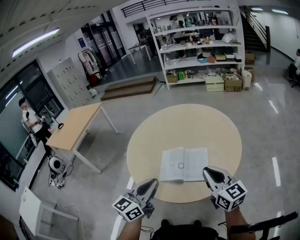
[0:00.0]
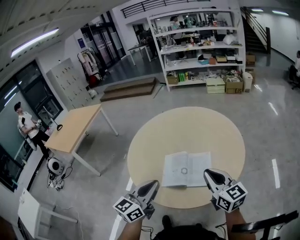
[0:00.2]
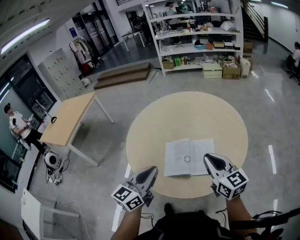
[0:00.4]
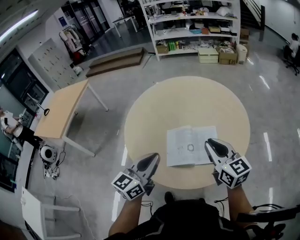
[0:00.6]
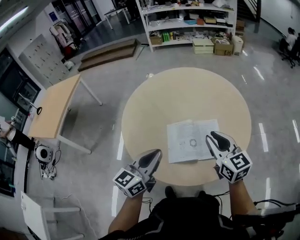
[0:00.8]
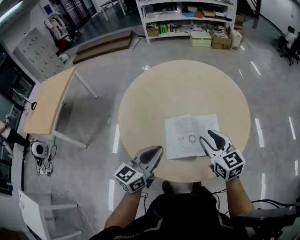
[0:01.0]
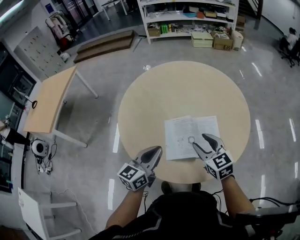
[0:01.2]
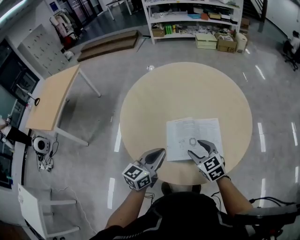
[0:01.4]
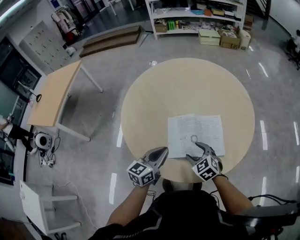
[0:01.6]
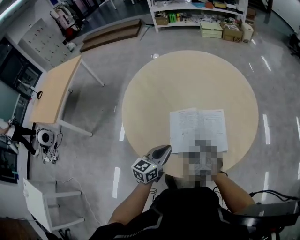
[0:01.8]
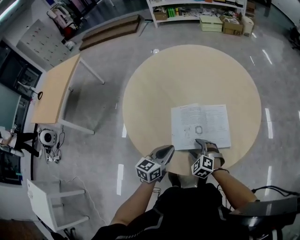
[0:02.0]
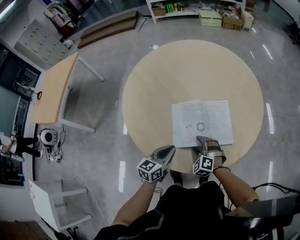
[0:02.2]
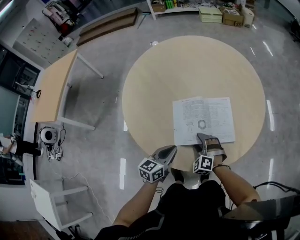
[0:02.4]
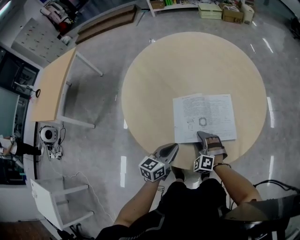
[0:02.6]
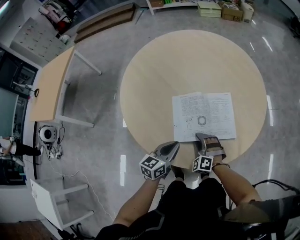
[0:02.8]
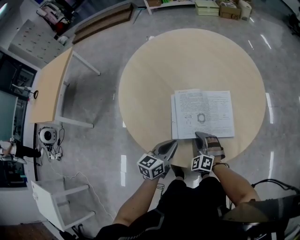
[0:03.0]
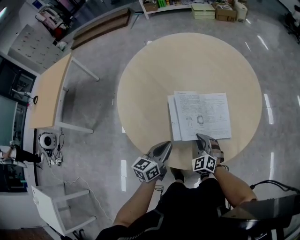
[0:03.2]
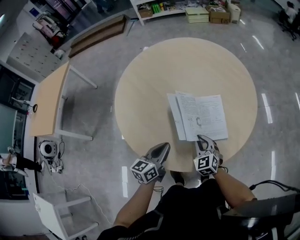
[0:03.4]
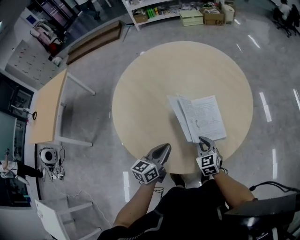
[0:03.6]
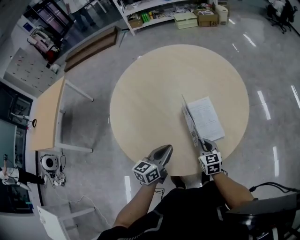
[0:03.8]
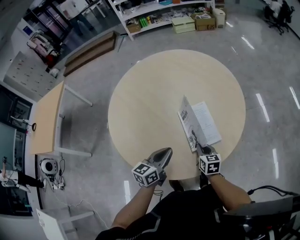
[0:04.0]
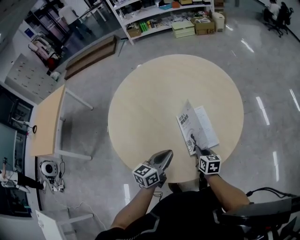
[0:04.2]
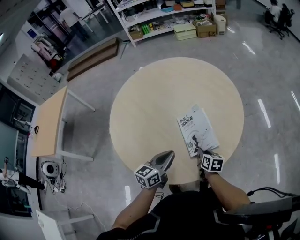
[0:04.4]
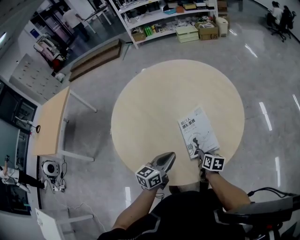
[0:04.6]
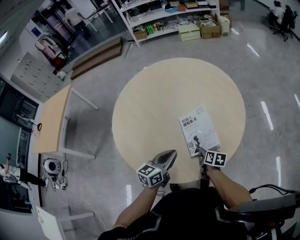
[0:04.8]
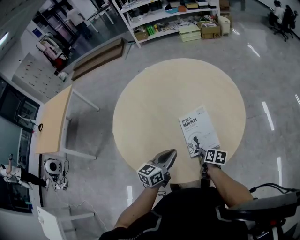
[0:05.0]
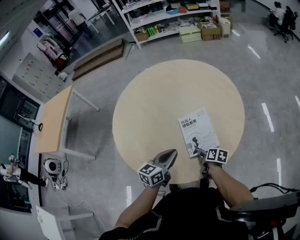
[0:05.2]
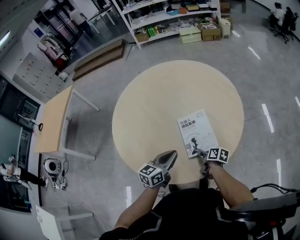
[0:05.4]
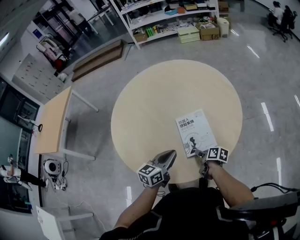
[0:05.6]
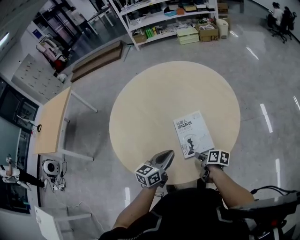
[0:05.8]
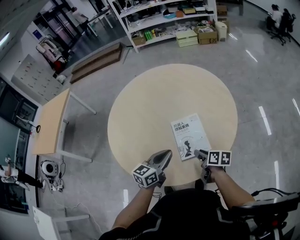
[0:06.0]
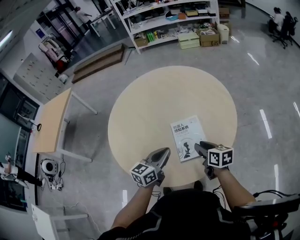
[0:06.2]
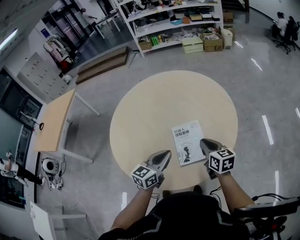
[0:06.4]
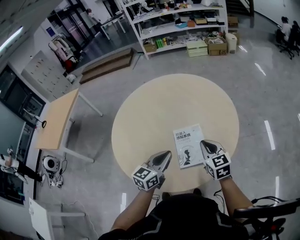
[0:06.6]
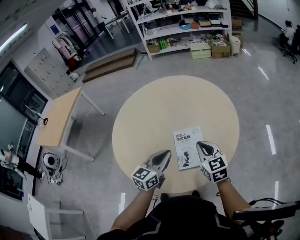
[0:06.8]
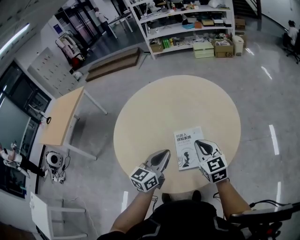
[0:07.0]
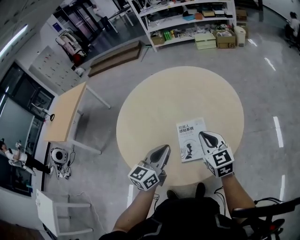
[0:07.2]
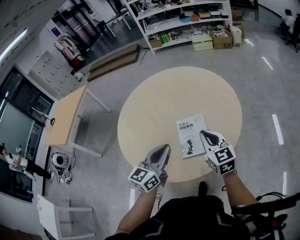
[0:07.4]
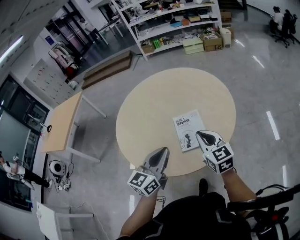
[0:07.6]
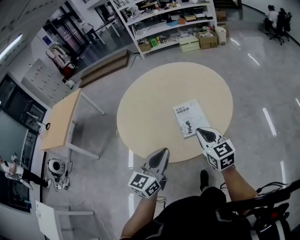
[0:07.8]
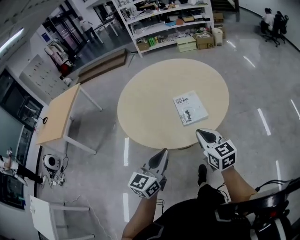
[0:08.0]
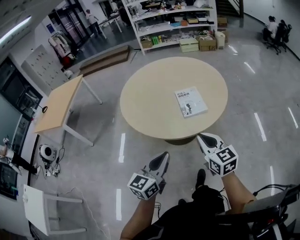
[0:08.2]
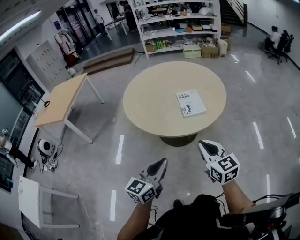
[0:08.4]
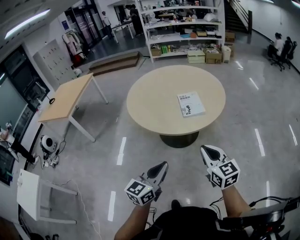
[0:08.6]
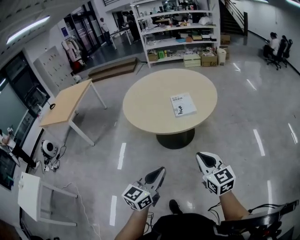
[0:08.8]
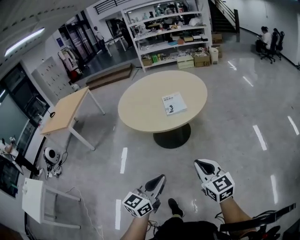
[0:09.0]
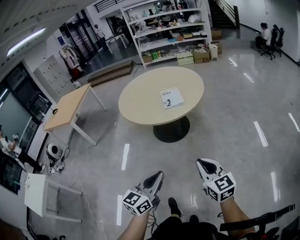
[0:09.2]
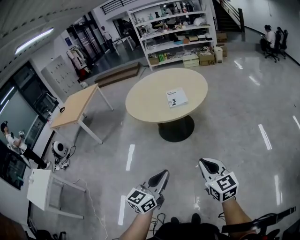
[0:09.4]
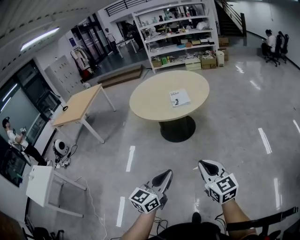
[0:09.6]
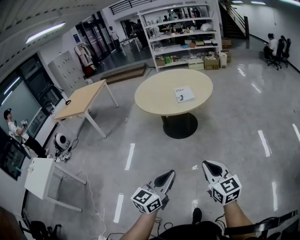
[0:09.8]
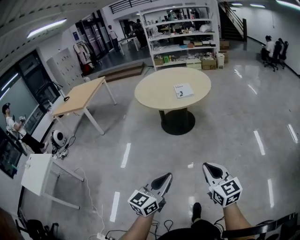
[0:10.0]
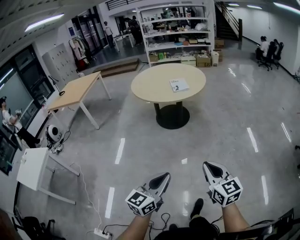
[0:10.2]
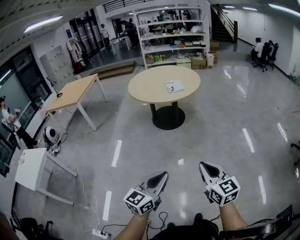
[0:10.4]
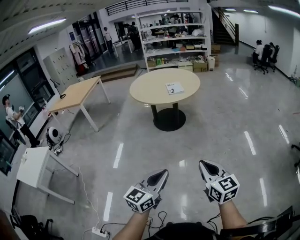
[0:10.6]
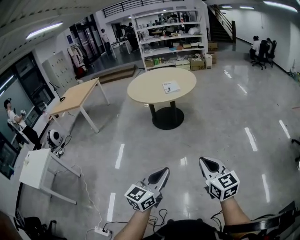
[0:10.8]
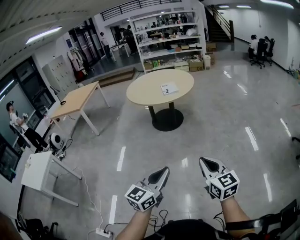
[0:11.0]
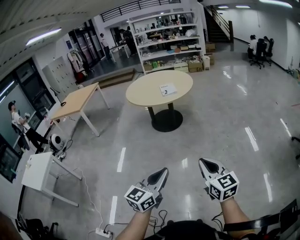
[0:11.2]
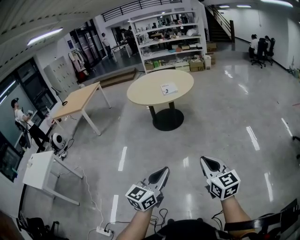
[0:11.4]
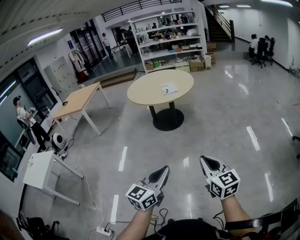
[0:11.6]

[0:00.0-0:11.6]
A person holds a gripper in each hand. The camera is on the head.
0:00.0 to 0:01.4: The right gripper goes about 30 cm downward, to the left and forward, tilts its fingers roughly 30 degrees downward, and opens up; the left gripper shifts roughly 20 cm downward, forward and to the left.
0:01.4 to 0:02.8: The grippers both shift downward by some 15 cm. The right gripper twists some 50 degrees counterclockwise, seen from behind.
0:02.8 to 0:04.4: The right gripper goes about 15 cm to the right, rolls clockwise, seen from behind, by some 100 degrees, and closes; the left gripper is displaced to the right and upward by some 10 cm.
0:04.4 to 0:05.8: The right gripper swivels some 30 degrees, and opens its fingers.
0:05.8 to 0:07.2: The right gripper shifts roughly 25 cm upward, rolls counterclockwise, seen from behind, by some 70 degrees, and closes up, while the left gripper shifts some 10 cm upward.
0:07.2 to 0:08.8: Both grippers are carried backward, about 60 cm.
0:08.8 to 0:10.2: The pair of grippers is taken backward, roughly 50 cm.
0:10.2 to 0:11.6: The left gripper heads to the right, backward and upward, covering approximately 15 cm. The right gripper moves backward and to the right, about 15 cm.

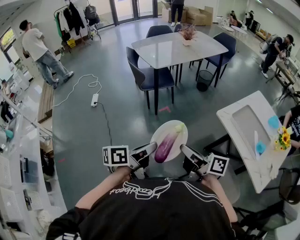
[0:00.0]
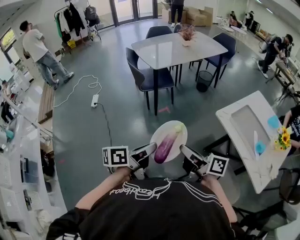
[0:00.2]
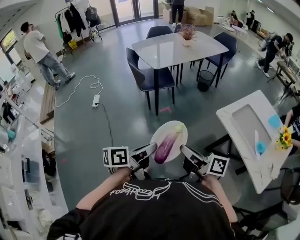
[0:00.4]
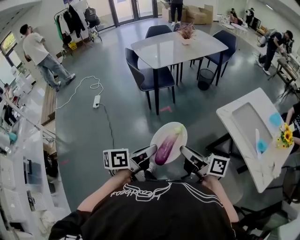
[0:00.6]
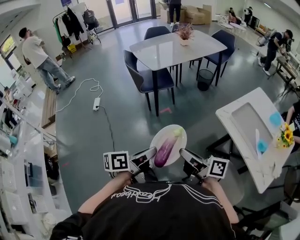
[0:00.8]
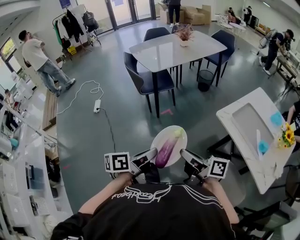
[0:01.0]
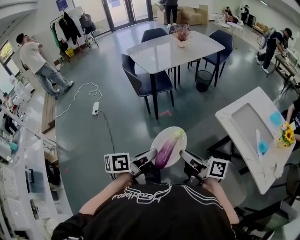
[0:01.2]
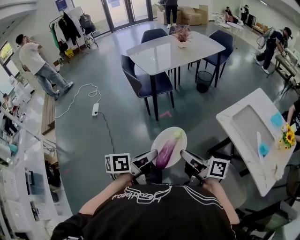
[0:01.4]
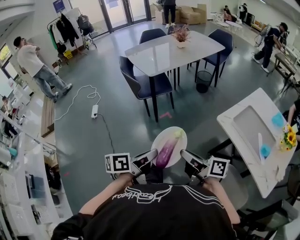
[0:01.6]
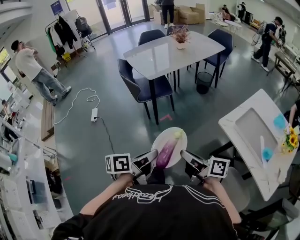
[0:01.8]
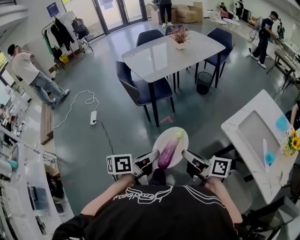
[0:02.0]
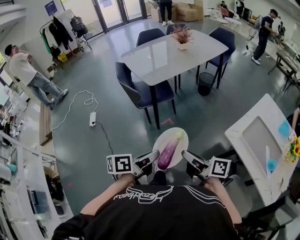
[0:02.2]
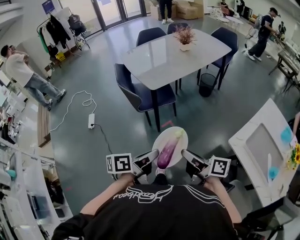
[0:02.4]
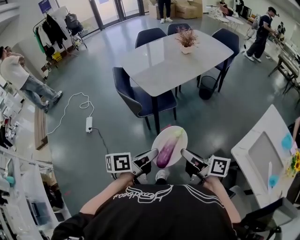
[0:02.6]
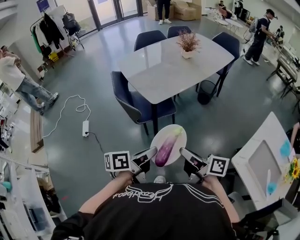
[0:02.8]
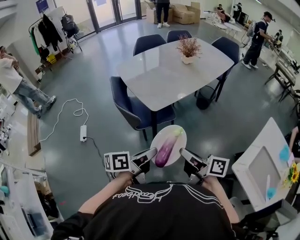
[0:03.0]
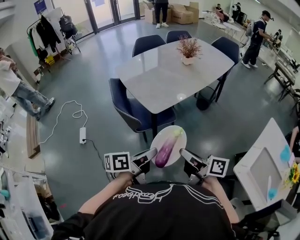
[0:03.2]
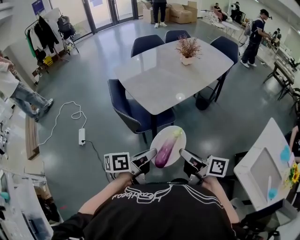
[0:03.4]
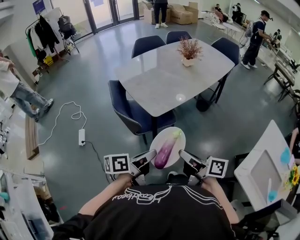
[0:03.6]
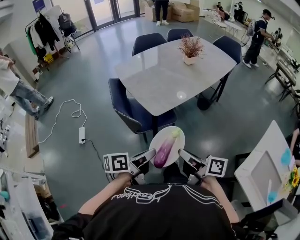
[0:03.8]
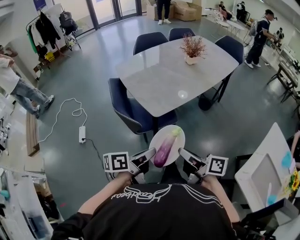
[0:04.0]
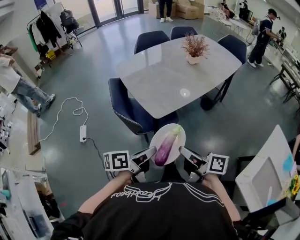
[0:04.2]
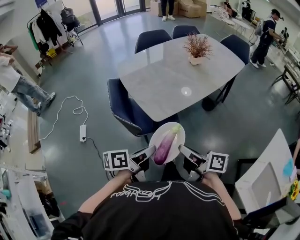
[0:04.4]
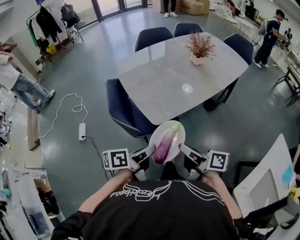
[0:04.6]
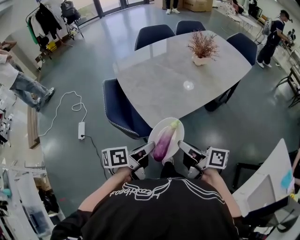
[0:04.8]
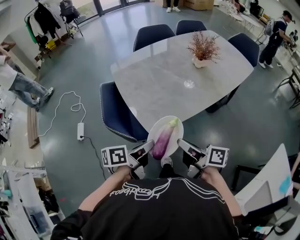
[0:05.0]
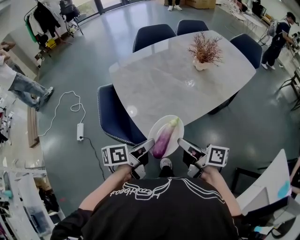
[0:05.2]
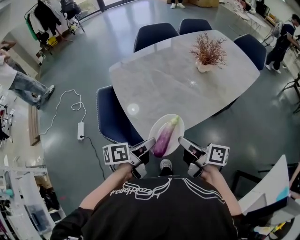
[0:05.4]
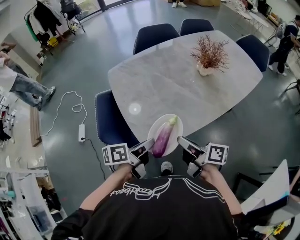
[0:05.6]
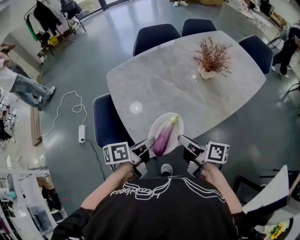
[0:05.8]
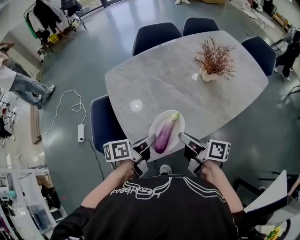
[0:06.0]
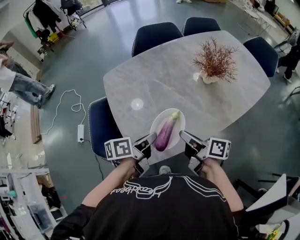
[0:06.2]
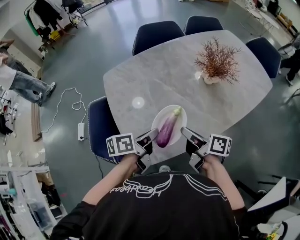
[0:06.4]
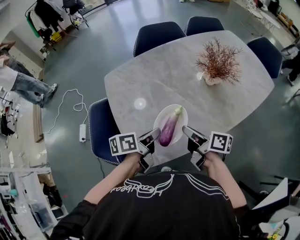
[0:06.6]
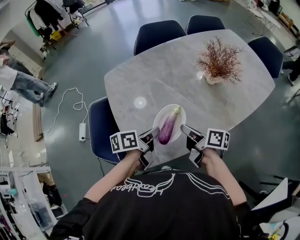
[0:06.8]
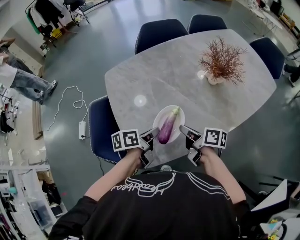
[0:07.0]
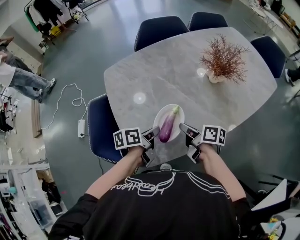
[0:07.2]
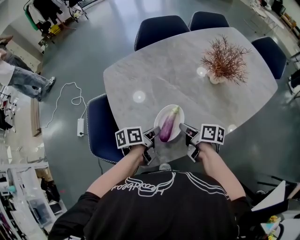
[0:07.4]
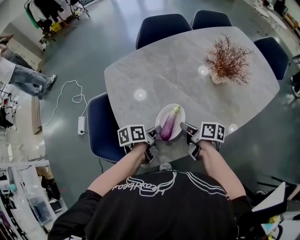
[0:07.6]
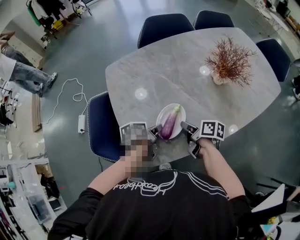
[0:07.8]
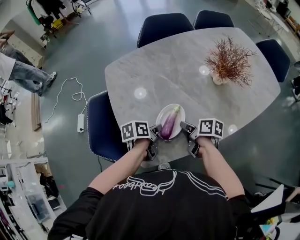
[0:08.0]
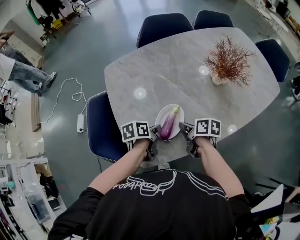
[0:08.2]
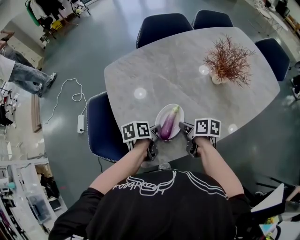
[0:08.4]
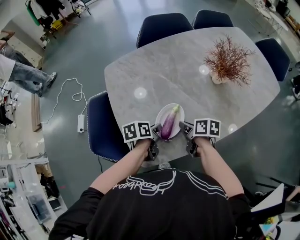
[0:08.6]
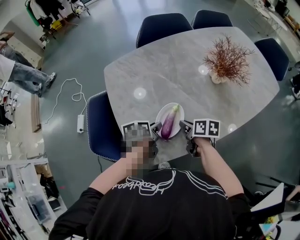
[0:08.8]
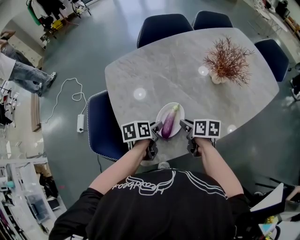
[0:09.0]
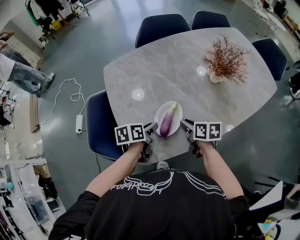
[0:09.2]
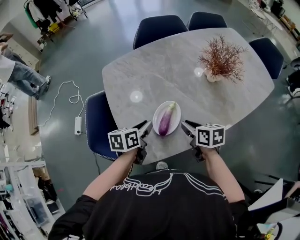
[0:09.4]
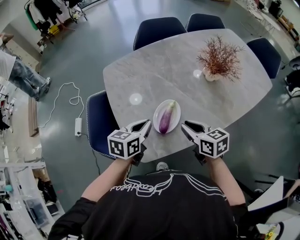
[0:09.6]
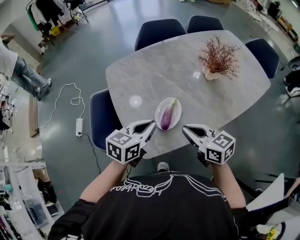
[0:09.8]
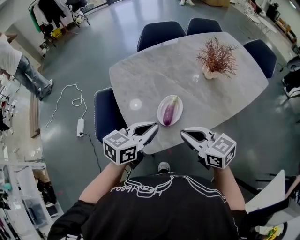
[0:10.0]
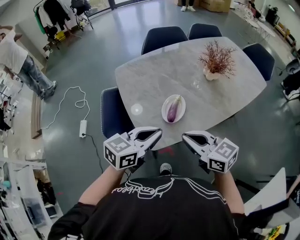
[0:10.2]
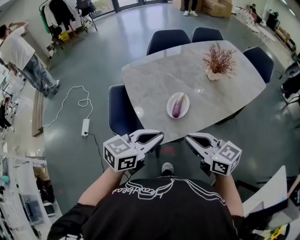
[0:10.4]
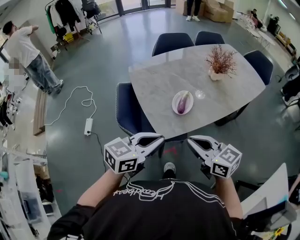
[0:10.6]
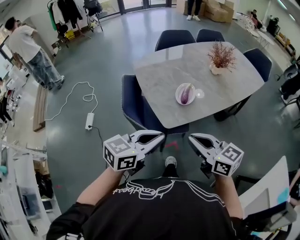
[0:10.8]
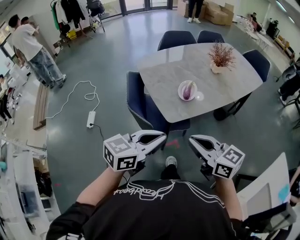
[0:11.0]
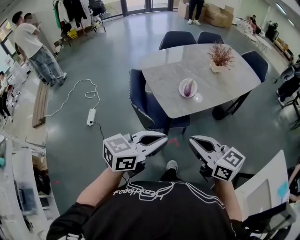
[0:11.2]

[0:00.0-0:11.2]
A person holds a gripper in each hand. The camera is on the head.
0:00.0 to 0:01.6: The left gripper changes place by approximately 5 cm; the right gripper changes place by roughly 5 cm.
0:01.6 to 0:03.2: The grippers both shift forward by approximately 35 cm.
0:03.2 to 0:04.8: The two grippers go approximately 15 cm forward.
0:04.8 to 0:06.4: The grippers both shift forward by some 20 cm.
0:06.4 to 0:08.0: The grippers both shift downward and forward by roughly 15 cm. The right gripper rotates roughly 30 degrees. Meanwhile the left gripper changes its angle by approximately 20 degrees.
0:08.0 to 0:09.6: Both grippers travel together upward, some 10 cm. The right gripper twists approximately 40 degrees counterclockwise, seen from behind. The left gripper rotates about 40 degrees, and opens and closes again.
0:09.6 to 0:11.2: Both grippers travel together backward and upward, approximately 40 cm. The right gripper turns by some 20 degrees. Meanwhile the left gripper rotates about 30 degrees.

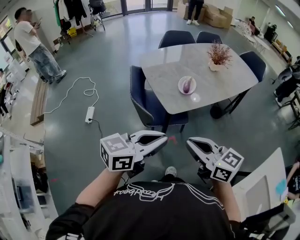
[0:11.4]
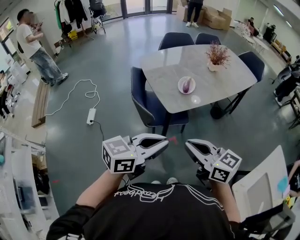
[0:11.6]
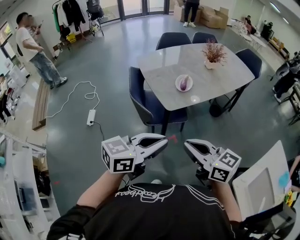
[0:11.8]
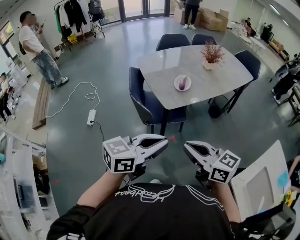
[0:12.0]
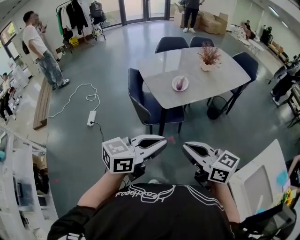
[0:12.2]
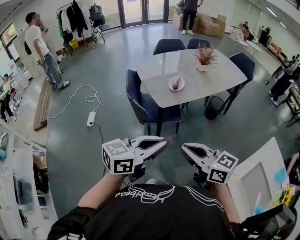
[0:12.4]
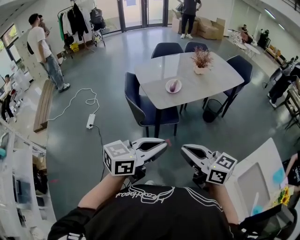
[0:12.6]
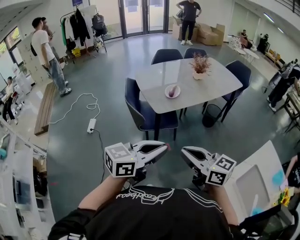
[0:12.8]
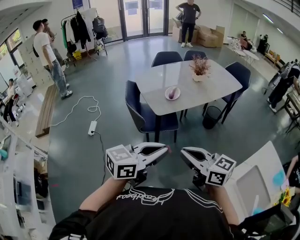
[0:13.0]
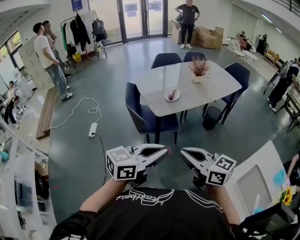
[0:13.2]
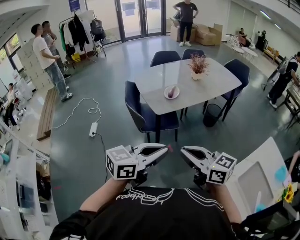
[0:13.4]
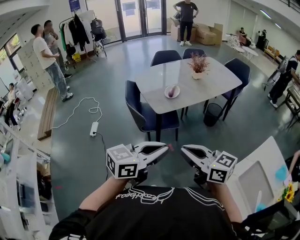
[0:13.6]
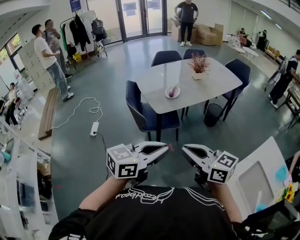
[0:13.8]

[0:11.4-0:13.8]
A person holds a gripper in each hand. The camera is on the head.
0:11.4 to 0:12.6: The grippers both shift backward and to the right by approximately 15 cm.
0:12.6 to 0:13.8: There are only small adjustments of the grippers.
